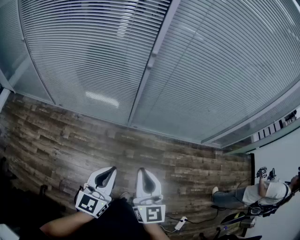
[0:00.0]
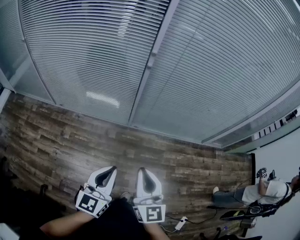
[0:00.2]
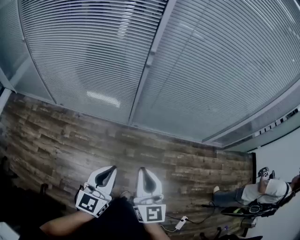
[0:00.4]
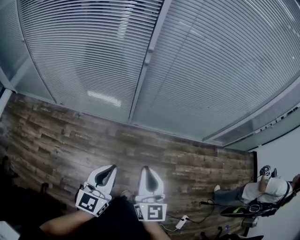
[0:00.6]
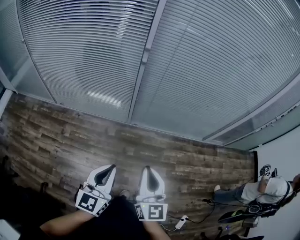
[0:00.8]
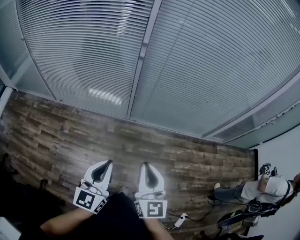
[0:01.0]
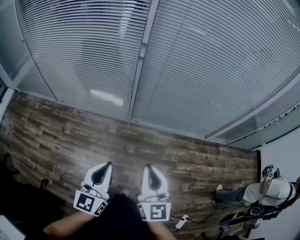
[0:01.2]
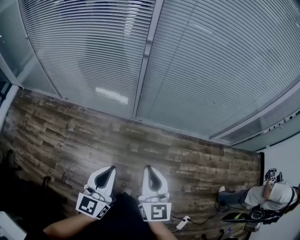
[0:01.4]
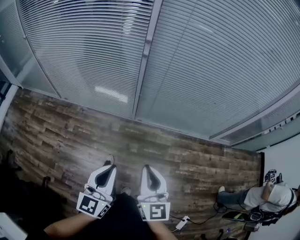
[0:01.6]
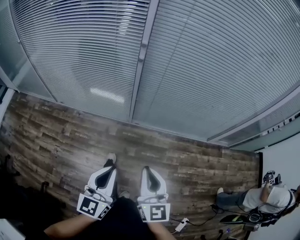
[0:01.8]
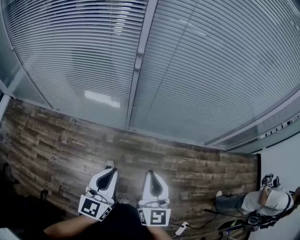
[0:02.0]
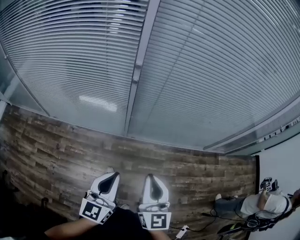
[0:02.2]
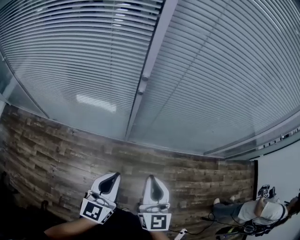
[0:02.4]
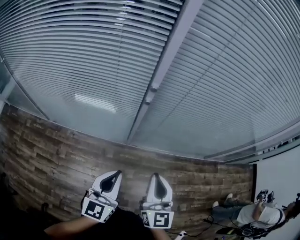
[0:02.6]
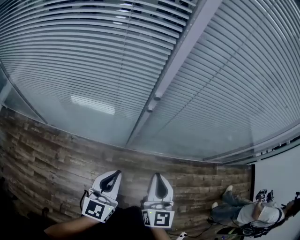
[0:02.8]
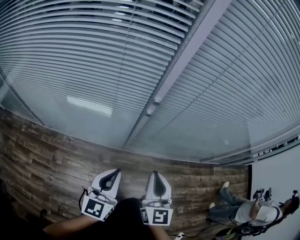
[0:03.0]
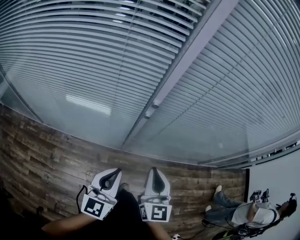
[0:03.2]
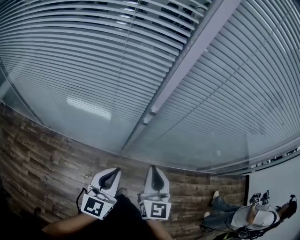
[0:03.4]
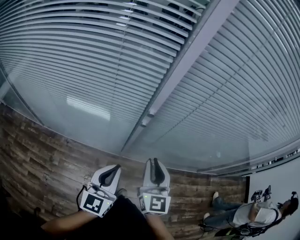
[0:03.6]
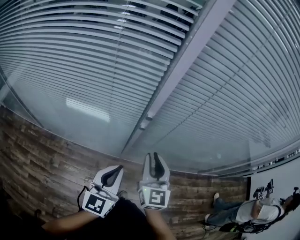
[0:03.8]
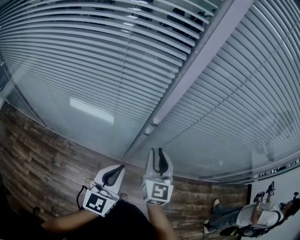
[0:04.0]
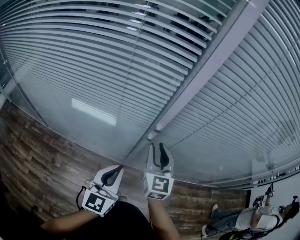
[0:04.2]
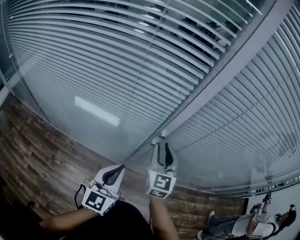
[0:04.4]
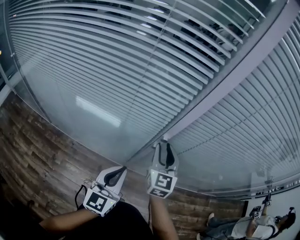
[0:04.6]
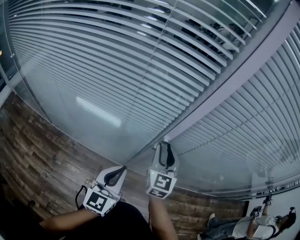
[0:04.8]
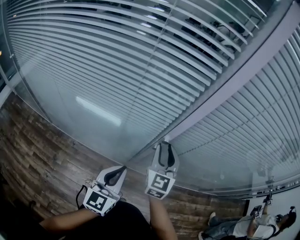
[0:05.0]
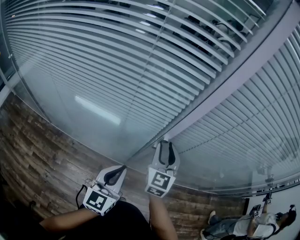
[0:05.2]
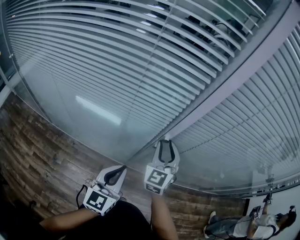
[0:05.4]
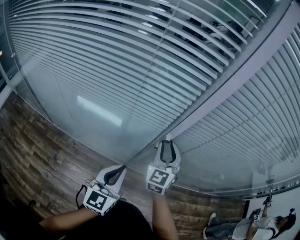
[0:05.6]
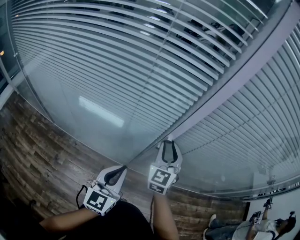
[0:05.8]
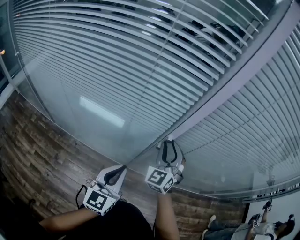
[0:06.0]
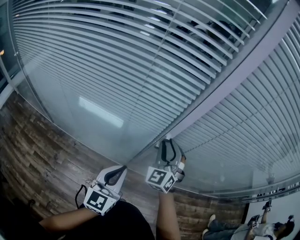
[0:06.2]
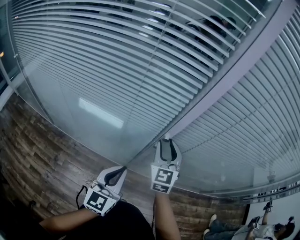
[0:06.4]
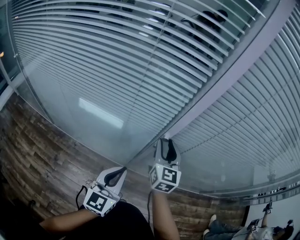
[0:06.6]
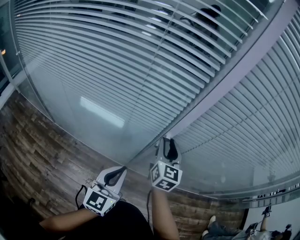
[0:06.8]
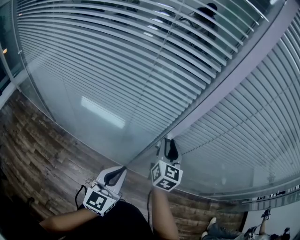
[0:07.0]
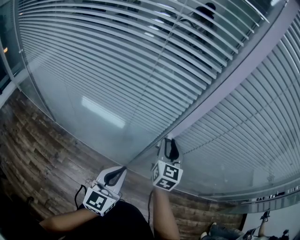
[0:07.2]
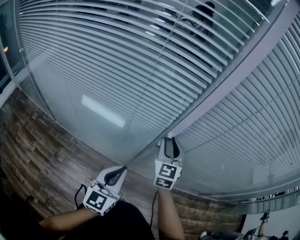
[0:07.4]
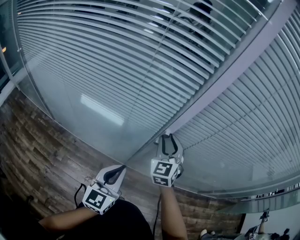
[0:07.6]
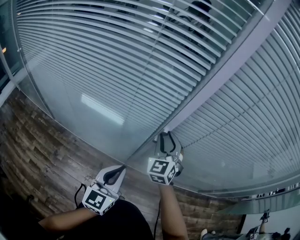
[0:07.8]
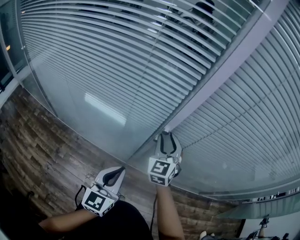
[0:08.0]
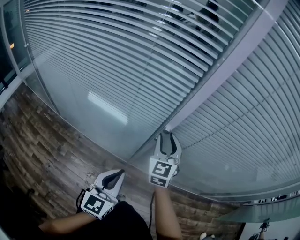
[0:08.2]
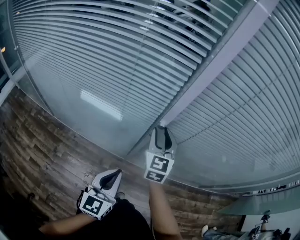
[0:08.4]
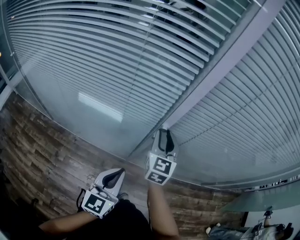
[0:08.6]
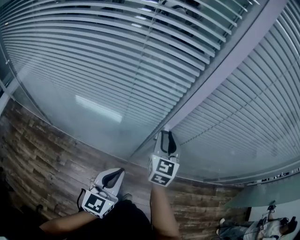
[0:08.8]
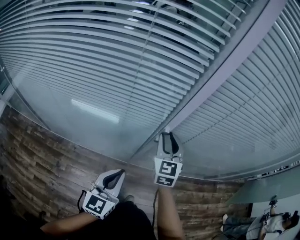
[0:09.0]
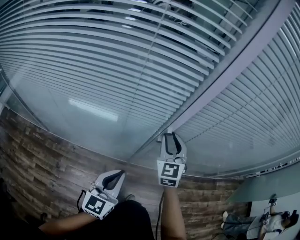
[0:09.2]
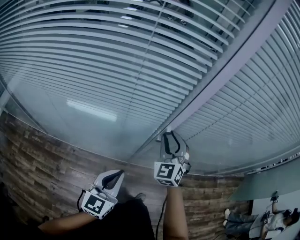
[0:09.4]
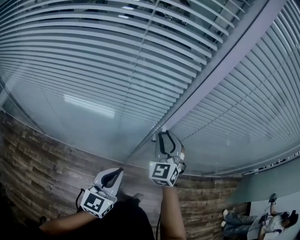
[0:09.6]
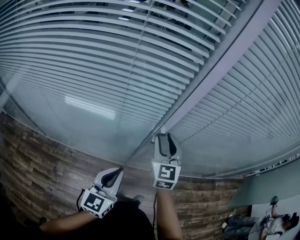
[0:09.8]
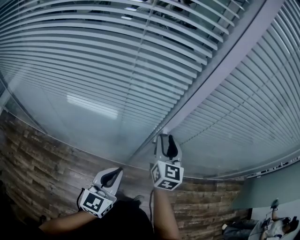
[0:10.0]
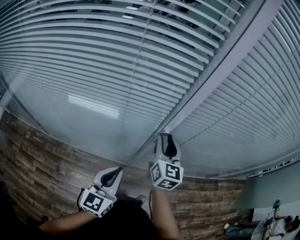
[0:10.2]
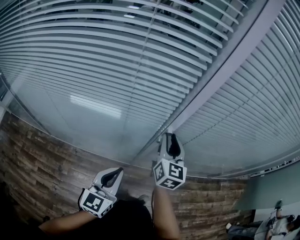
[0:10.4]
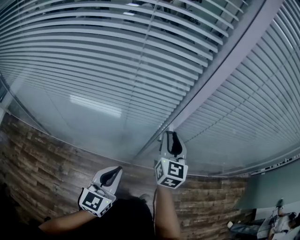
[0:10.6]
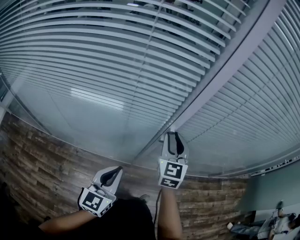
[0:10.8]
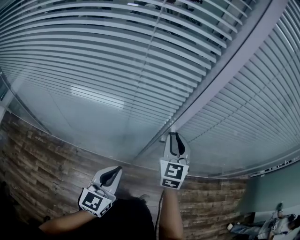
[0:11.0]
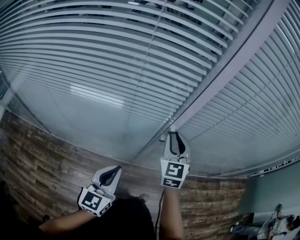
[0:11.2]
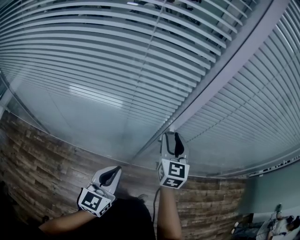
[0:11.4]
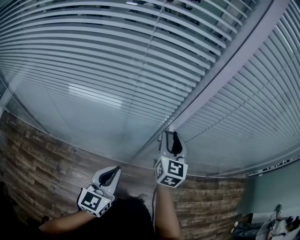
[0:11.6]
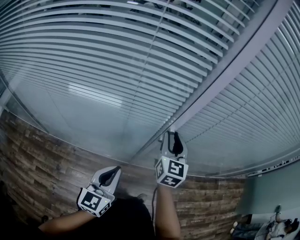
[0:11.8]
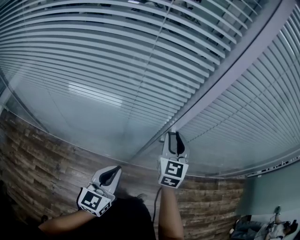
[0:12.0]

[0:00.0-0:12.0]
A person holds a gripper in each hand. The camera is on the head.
0:00.0 to 0:01.6: The two grippers go about 5 cm to the right.
0:01.6 to 0:03.0: The two grippers go roughly 25 cm forward.
0:03.0 to 0:04.4: The right gripper travels forward by approximately 25 cm, and opens. Meanwhile the left gripper moves forward, some 10 cm.
0:04.4 to 0:06.0: The right gripper rotates some 30 degrees.
0:09.0 to 0:10.4: The right gripper turns by roughly 20 degrees.
0:10.4 to 0:12.0: The right gripper changes its angle by roughly 20 degrees.

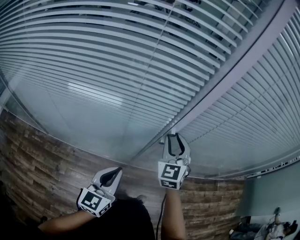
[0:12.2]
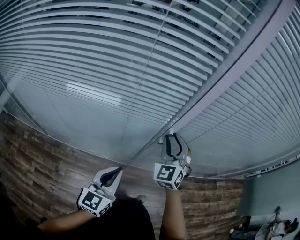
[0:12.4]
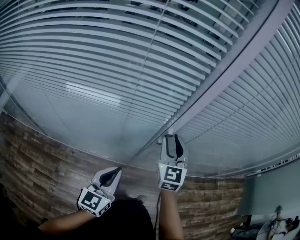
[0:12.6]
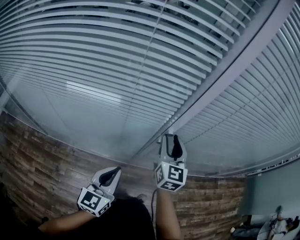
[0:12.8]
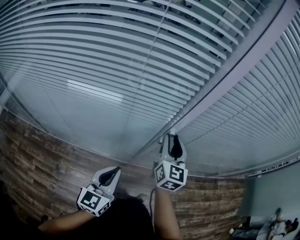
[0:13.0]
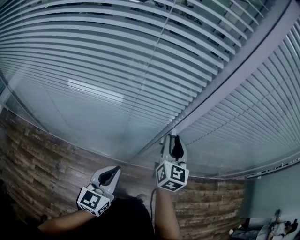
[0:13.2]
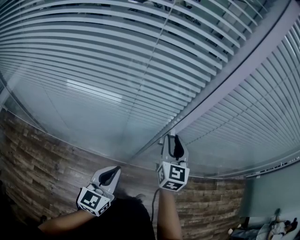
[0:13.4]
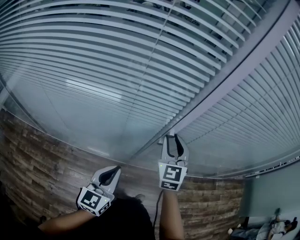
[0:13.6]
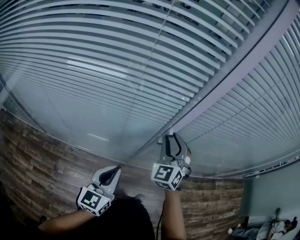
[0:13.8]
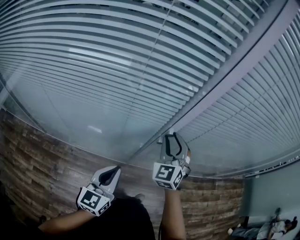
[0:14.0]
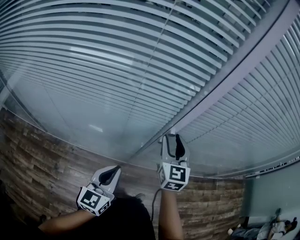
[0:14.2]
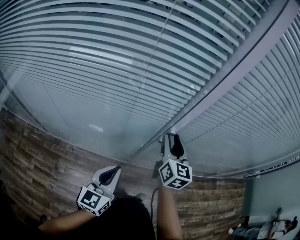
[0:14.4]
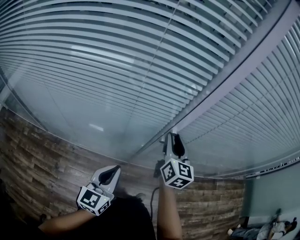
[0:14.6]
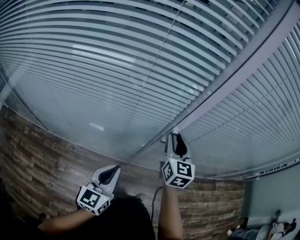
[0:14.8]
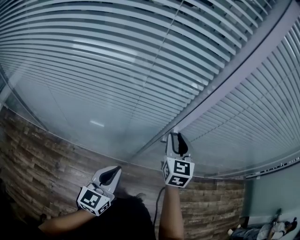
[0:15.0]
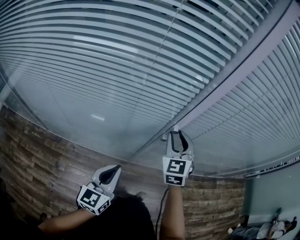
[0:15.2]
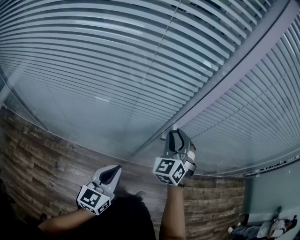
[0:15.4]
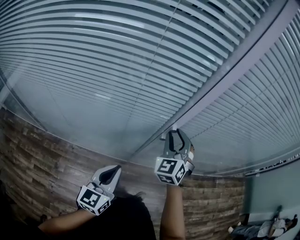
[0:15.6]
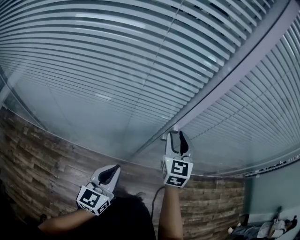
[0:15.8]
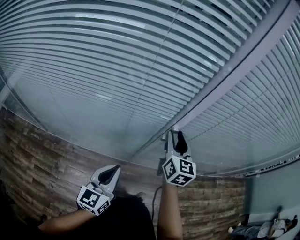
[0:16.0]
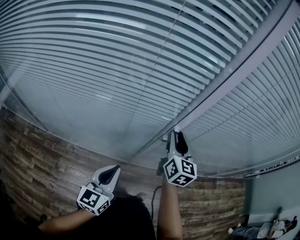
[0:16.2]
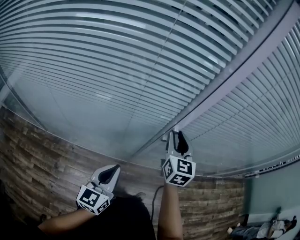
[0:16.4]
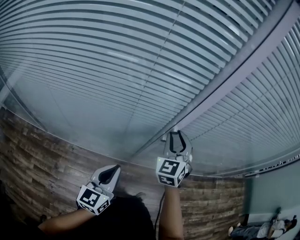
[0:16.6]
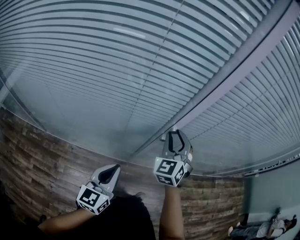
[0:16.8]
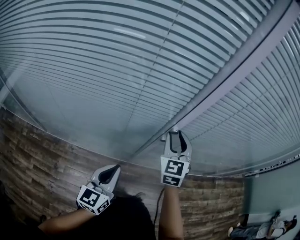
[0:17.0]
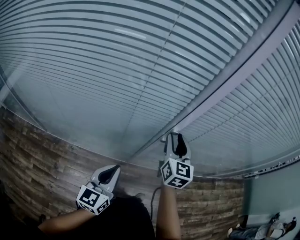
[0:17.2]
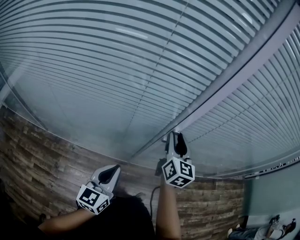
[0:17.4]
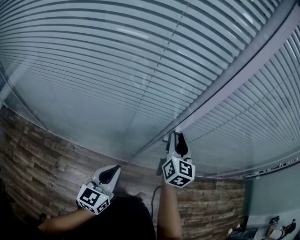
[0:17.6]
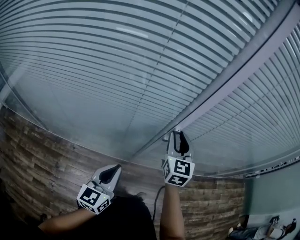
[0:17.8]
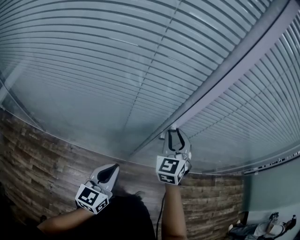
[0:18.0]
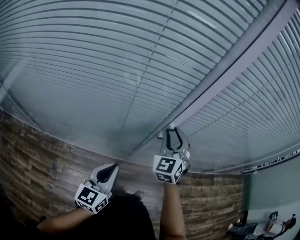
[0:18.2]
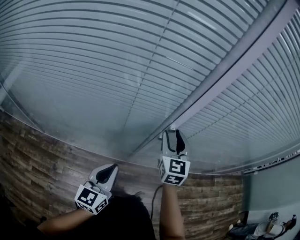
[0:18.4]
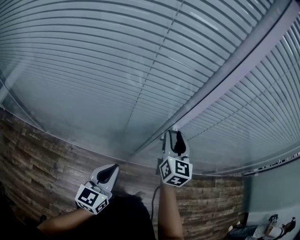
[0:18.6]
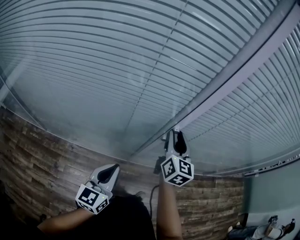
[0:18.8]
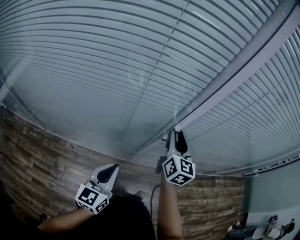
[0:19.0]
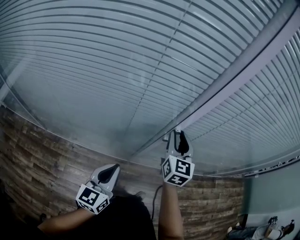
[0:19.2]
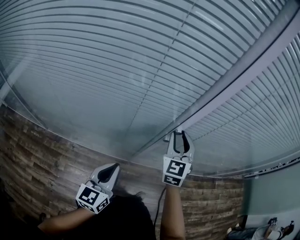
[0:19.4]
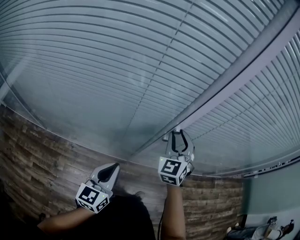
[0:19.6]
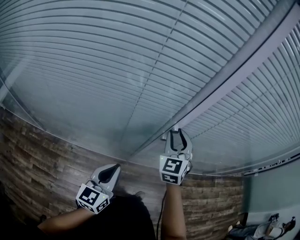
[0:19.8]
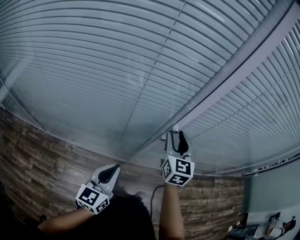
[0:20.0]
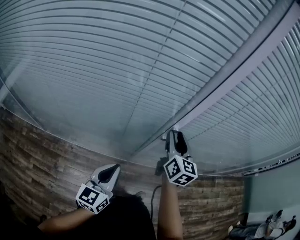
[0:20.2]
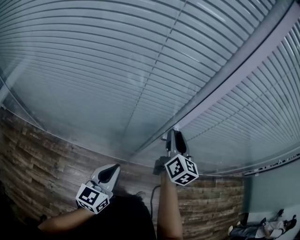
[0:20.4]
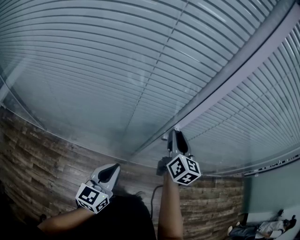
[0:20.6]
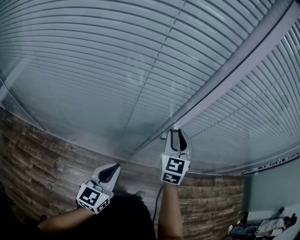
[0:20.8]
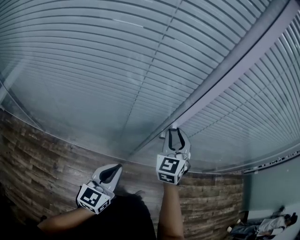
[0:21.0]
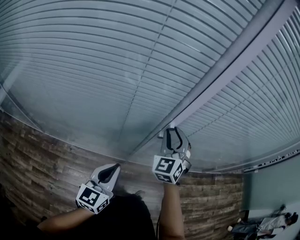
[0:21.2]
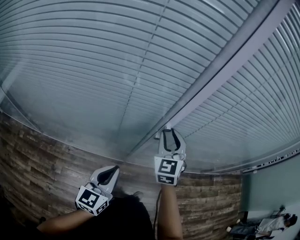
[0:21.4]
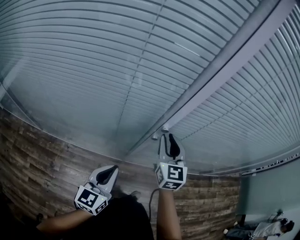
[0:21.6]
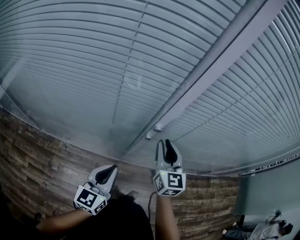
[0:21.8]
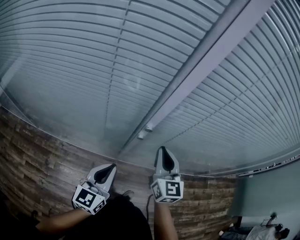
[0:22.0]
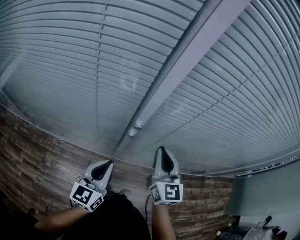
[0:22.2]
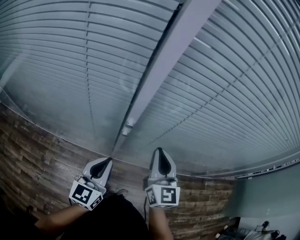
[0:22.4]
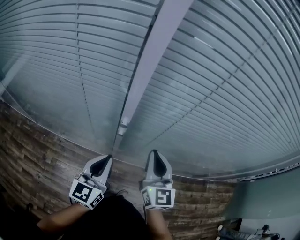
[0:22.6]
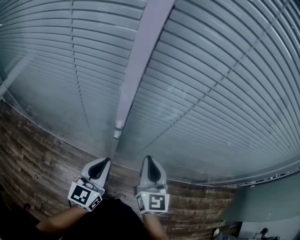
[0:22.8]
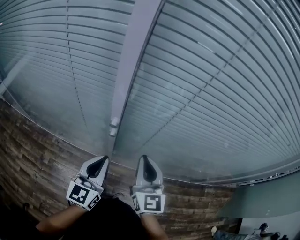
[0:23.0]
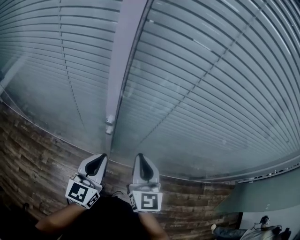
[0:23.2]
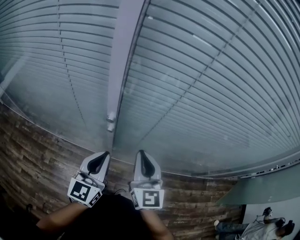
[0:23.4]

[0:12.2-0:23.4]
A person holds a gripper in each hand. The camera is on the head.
0:15.4 to 0:17.0: The right gripper turns by roughly 30 degrees.
0:17.0 to 0:18.6: The right gripper turns by some 30 degrees.
0:20.2 to 0:21.8: The right gripper ends up roughly 5 cm from where it was; the left gripper heads to the right, covering approximately 5 cm.
0:21.8 to 0:23.4: The right gripper goes some 5 cm to the right, and closes up, while the left gripper travels to the right and forward by some 10 cm.

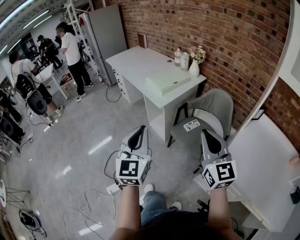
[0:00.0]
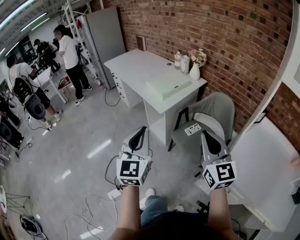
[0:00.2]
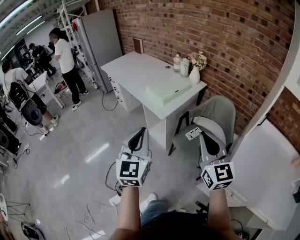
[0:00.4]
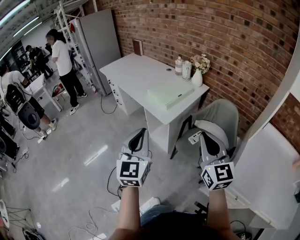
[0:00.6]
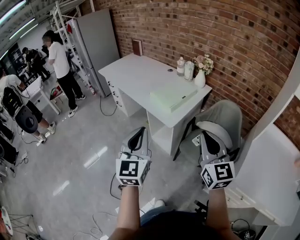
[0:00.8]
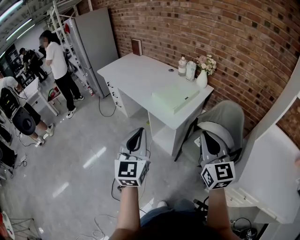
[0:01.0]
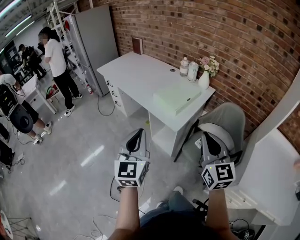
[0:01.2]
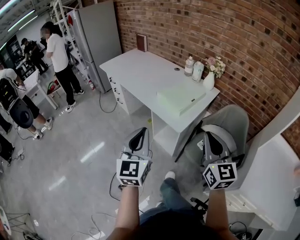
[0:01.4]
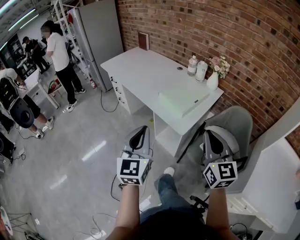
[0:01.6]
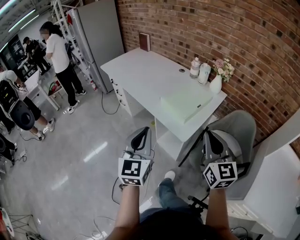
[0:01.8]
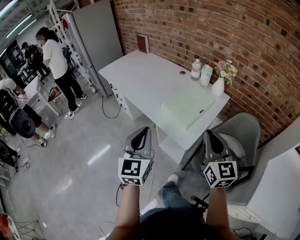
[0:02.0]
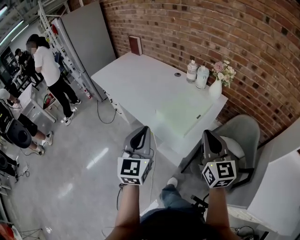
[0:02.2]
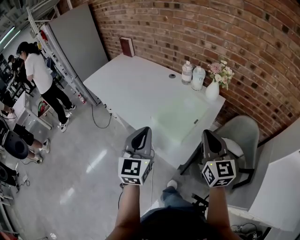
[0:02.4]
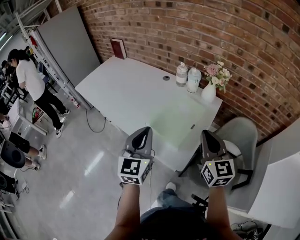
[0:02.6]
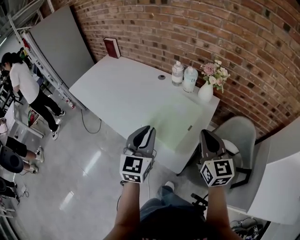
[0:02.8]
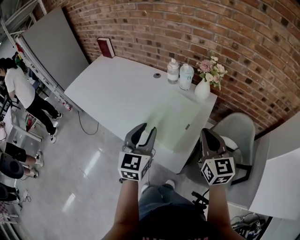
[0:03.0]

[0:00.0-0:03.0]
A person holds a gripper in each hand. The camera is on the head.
0:00.0 to 0:01.6: Both grippers travel together forward and to the left, some 30 cm.
0:01.6 to 0:03.0: The two grippers go about 30 cm forward. The left gripper turns by approximately 20 degrees, and opens.
